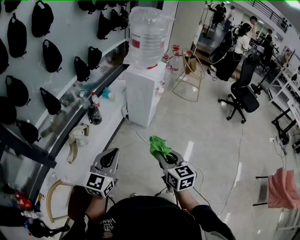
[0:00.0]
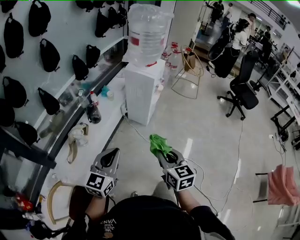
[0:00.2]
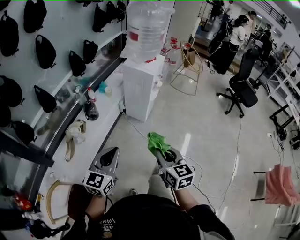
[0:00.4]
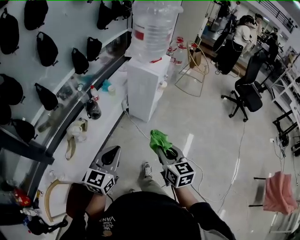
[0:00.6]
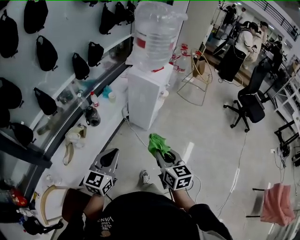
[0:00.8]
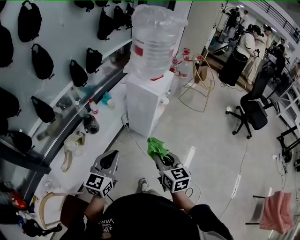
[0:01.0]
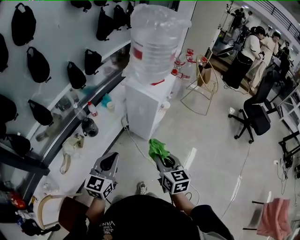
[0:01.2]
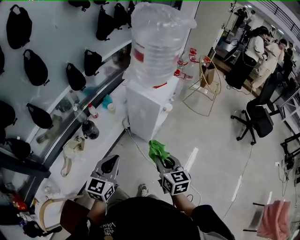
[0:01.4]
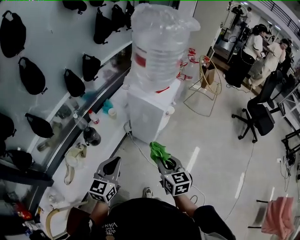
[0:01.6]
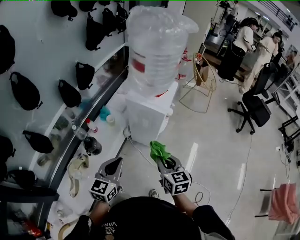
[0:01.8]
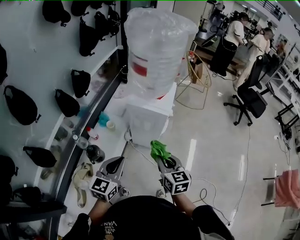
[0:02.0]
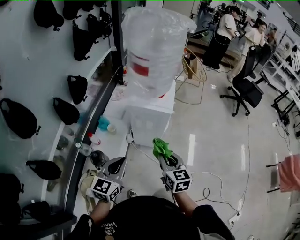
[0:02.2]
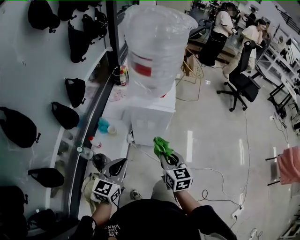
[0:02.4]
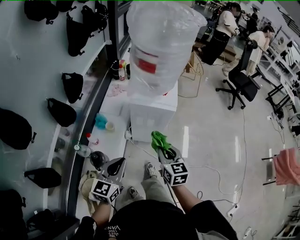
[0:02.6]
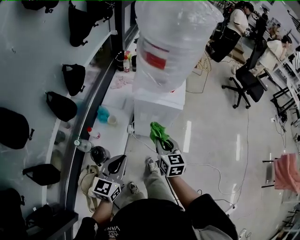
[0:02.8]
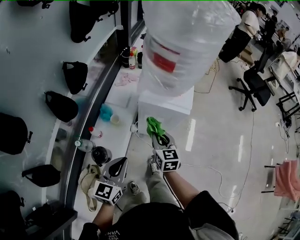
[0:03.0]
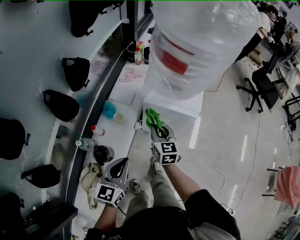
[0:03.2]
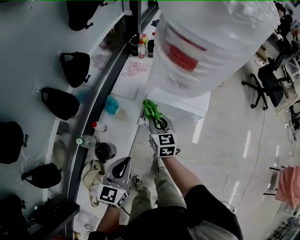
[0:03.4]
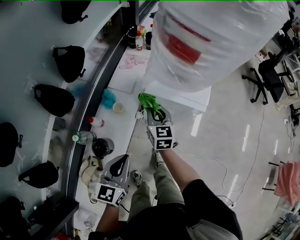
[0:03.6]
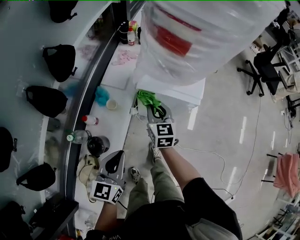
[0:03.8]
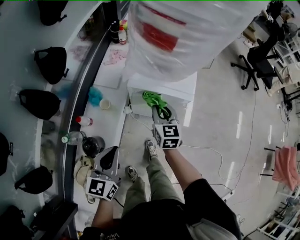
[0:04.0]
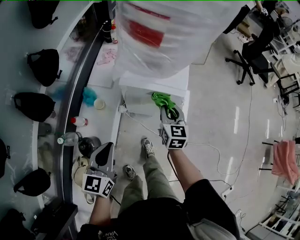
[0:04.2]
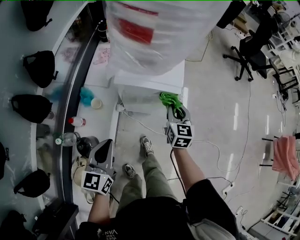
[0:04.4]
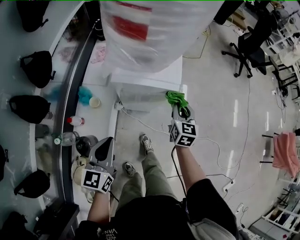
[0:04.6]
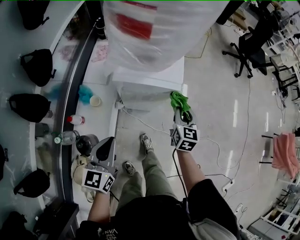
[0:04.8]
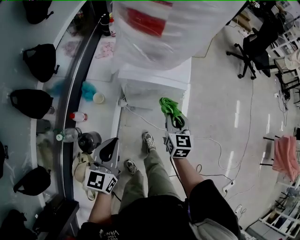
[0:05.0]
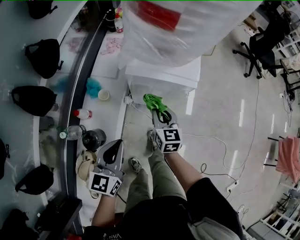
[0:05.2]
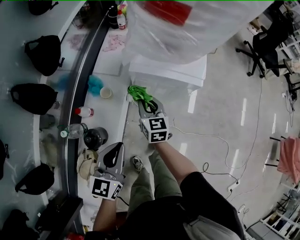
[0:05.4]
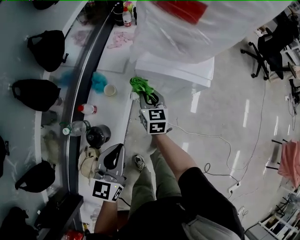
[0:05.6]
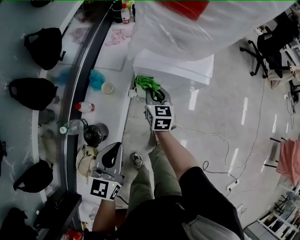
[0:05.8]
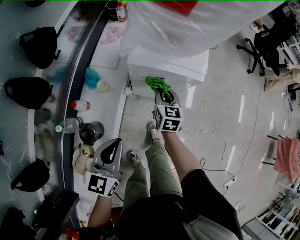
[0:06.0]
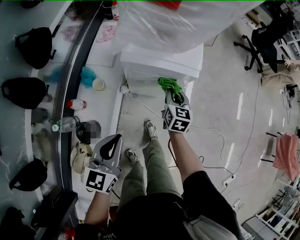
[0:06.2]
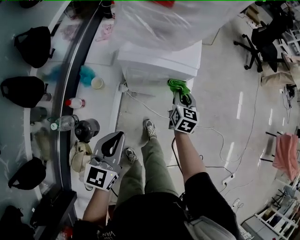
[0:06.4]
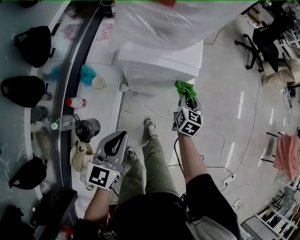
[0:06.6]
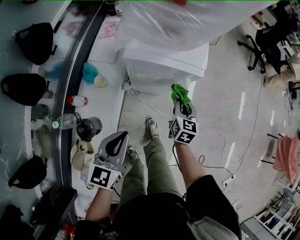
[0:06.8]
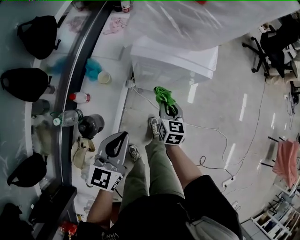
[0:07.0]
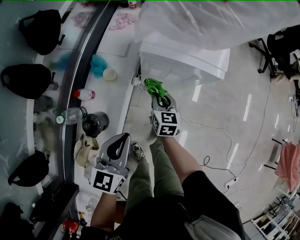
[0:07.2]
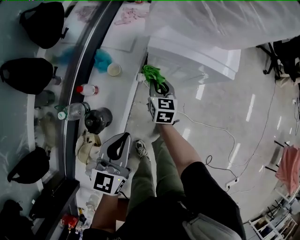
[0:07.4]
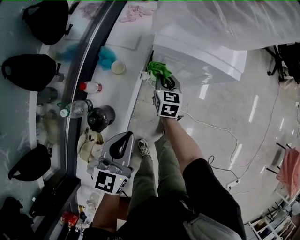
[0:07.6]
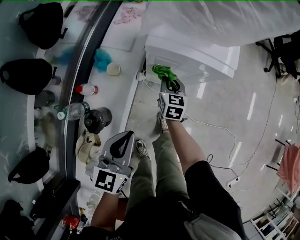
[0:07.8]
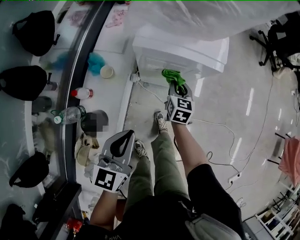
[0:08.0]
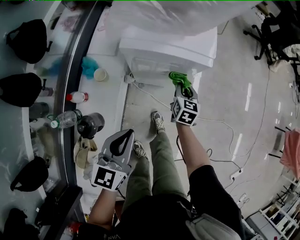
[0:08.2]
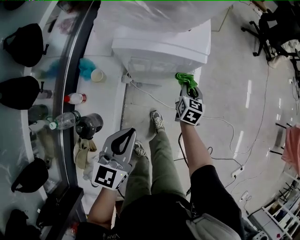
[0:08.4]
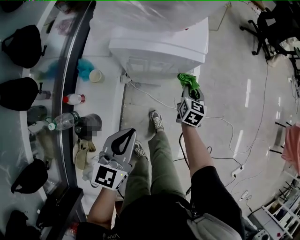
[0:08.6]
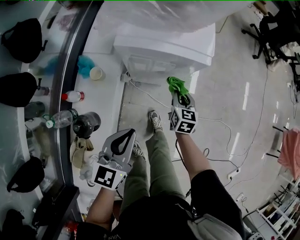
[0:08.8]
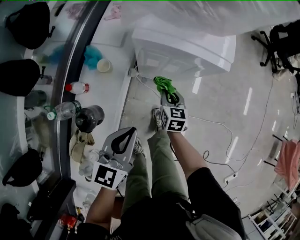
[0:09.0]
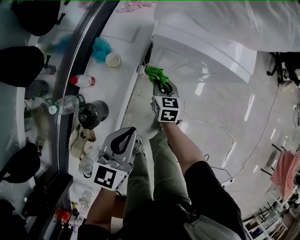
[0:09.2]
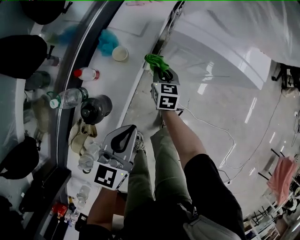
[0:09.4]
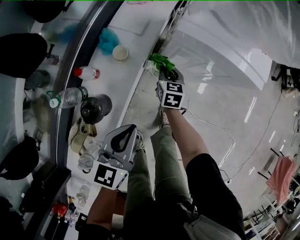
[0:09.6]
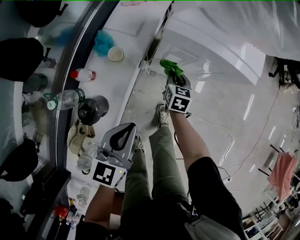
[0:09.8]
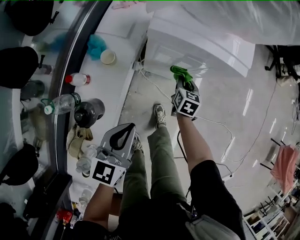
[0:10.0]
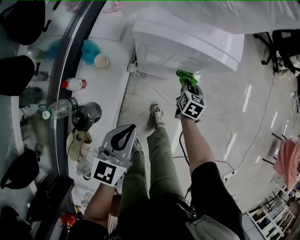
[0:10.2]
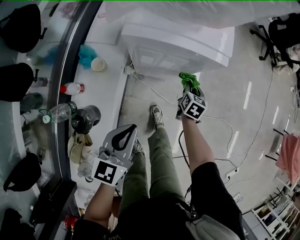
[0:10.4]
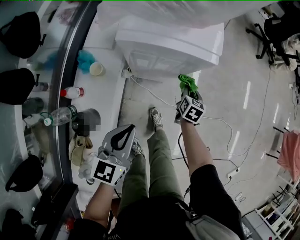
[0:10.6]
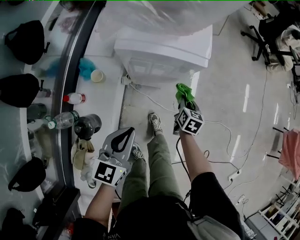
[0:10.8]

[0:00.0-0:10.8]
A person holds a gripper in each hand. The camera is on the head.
0:00.0 to 0:01.6: The grippers both shift forward by some 30 cm.
0:01.6 to 0:03.0: The left gripper goes approximately 20 cm to the left and forward. Meanwhile the right gripper is displaced forward, to the left and downward by about 30 cm, and changes its angle by about 20 degrees.
0:03.0 to 0:04.6: The right gripper is displaced to the right by about 20 cm, and turns by some 20 degrees. The left gripper moves forward, roughly 5 cm.
0:04.6 to 0:06.2: The right gripper heads downward, covering about 10 cm, and goes to the left and returns, some 25 cm each way.
0:06.2 to 0:07.8: The right gripper swings left and right, some 25 cm each way, with 2 reversals.
0:07.8 to 0:09.2: The right gripper heads downward, covering some 5 cm, and travels to the right and back again, roughly 20 cm each way.
0:09.2 to 0:10.8: The left gripper heads to the right, covering approximately 5 cm, while the right gripper moves to the right, some 25 cm, and rotates about 30 degrees.

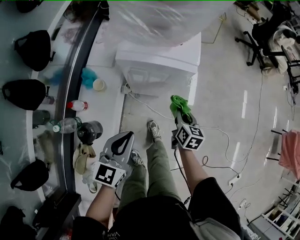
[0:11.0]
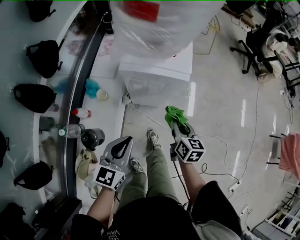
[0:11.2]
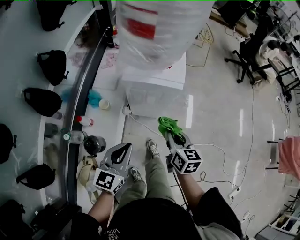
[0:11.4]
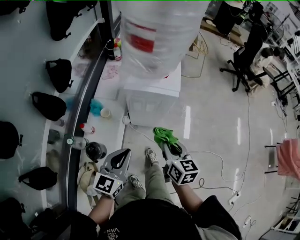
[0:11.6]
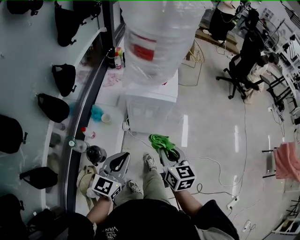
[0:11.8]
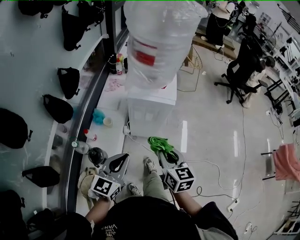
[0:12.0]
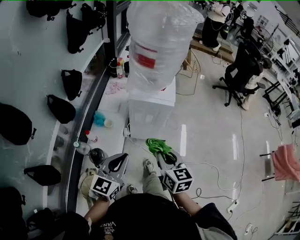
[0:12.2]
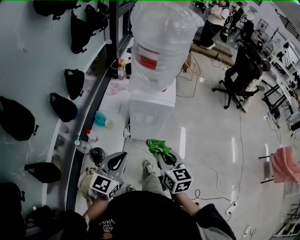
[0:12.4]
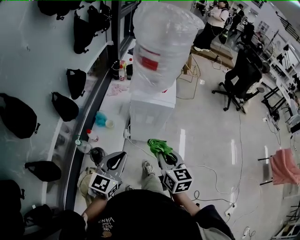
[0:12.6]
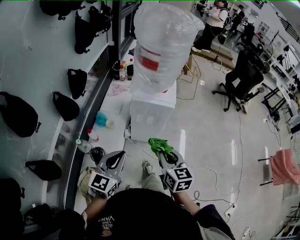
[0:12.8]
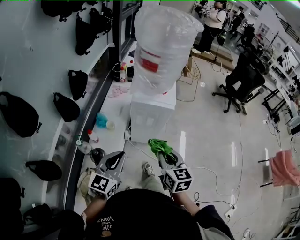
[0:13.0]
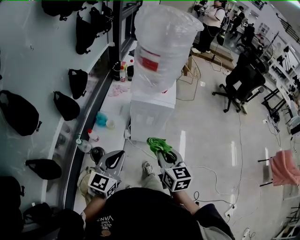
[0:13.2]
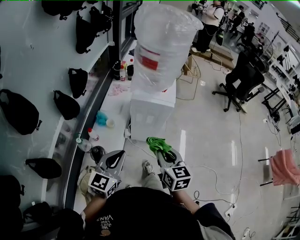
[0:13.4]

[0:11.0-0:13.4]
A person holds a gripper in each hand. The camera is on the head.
0:11.0 to 0:12.2: The right gripper moves upward and backward, some 30 cm, and rotates some 20 degrees, while the left gripper shifts roughly 20 cm upward and backward.
0:12.2 to 0:13.4: The grippers stay close to where they were, moving slightly.

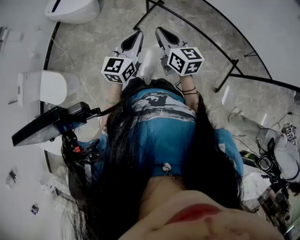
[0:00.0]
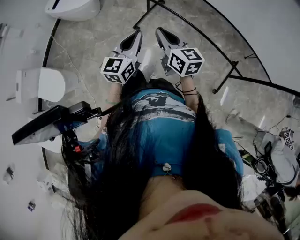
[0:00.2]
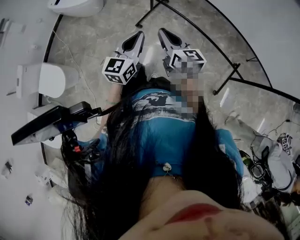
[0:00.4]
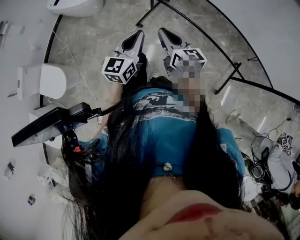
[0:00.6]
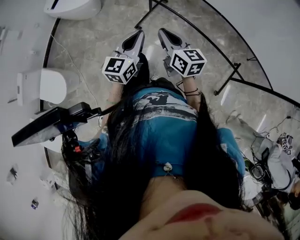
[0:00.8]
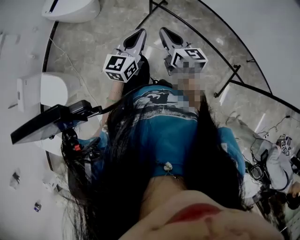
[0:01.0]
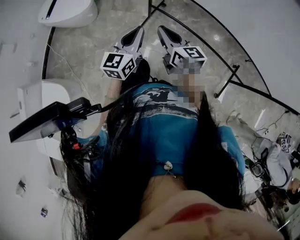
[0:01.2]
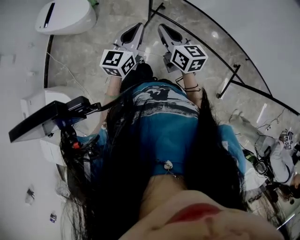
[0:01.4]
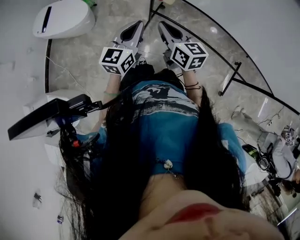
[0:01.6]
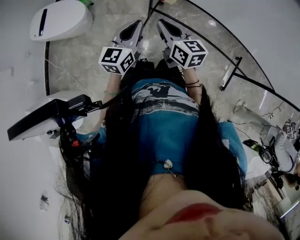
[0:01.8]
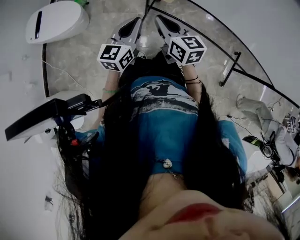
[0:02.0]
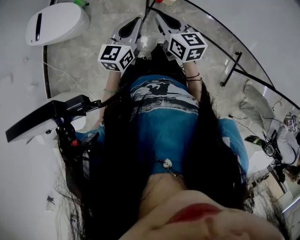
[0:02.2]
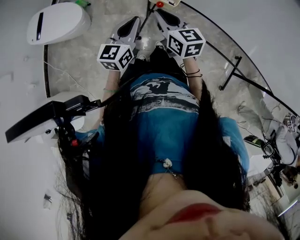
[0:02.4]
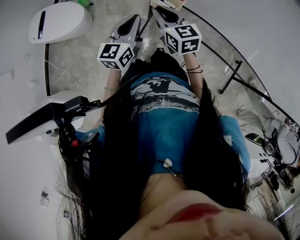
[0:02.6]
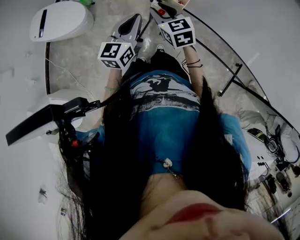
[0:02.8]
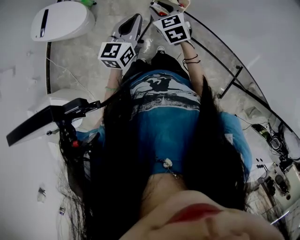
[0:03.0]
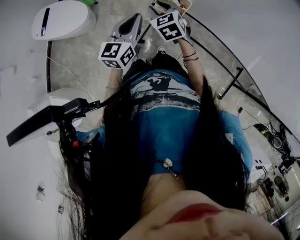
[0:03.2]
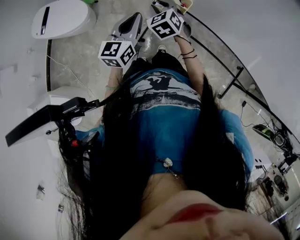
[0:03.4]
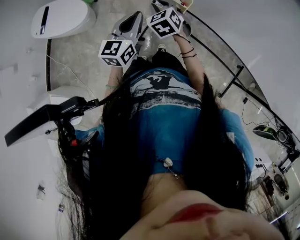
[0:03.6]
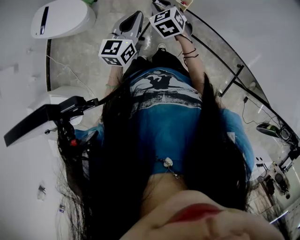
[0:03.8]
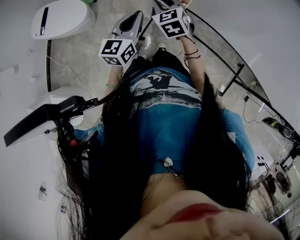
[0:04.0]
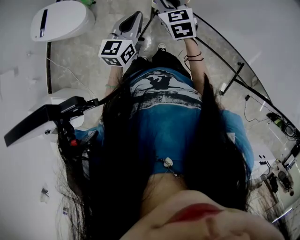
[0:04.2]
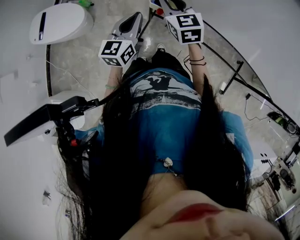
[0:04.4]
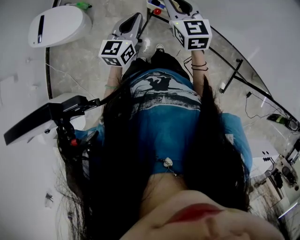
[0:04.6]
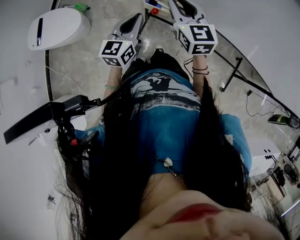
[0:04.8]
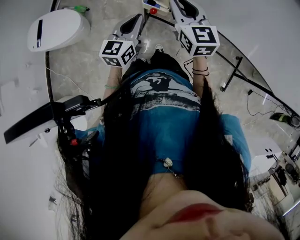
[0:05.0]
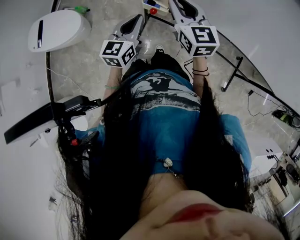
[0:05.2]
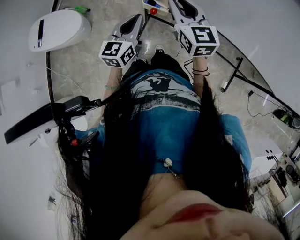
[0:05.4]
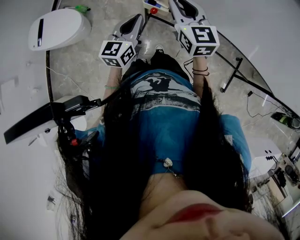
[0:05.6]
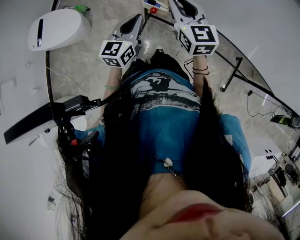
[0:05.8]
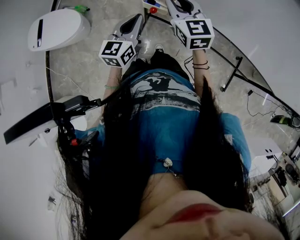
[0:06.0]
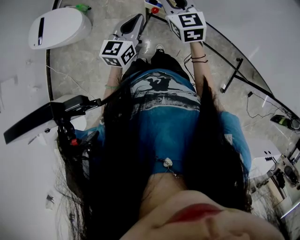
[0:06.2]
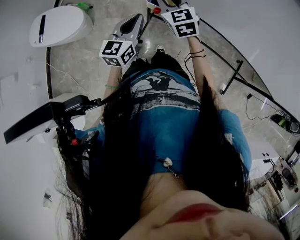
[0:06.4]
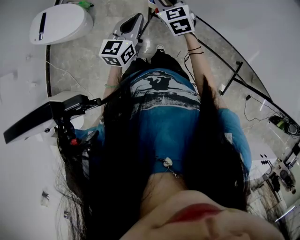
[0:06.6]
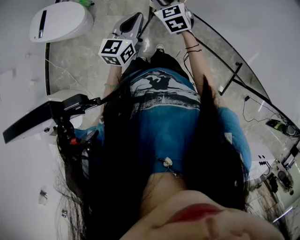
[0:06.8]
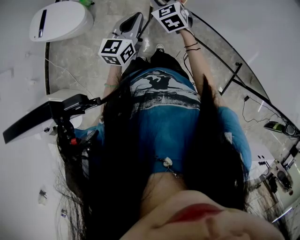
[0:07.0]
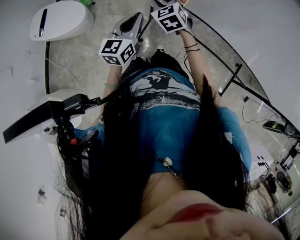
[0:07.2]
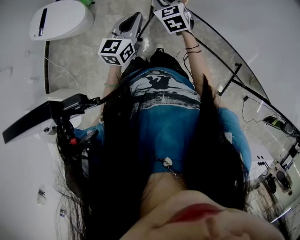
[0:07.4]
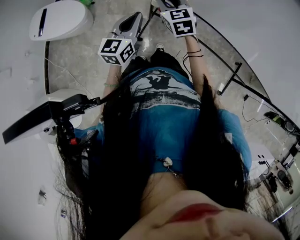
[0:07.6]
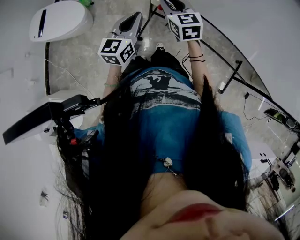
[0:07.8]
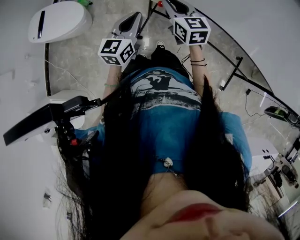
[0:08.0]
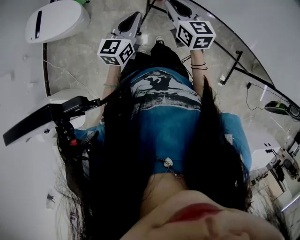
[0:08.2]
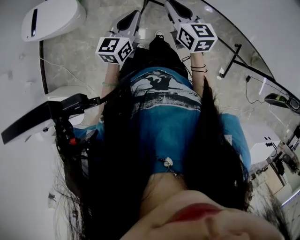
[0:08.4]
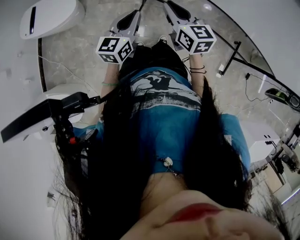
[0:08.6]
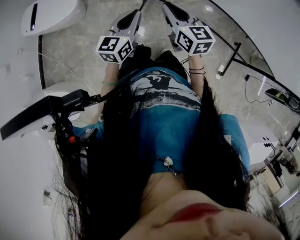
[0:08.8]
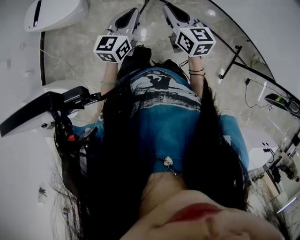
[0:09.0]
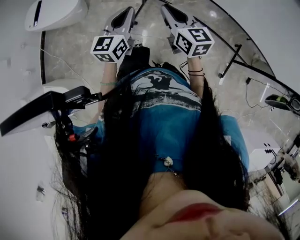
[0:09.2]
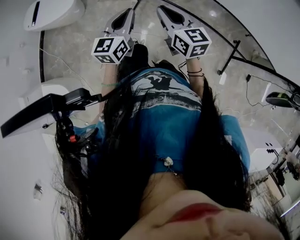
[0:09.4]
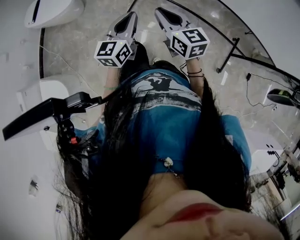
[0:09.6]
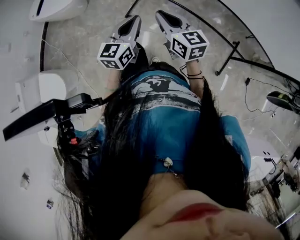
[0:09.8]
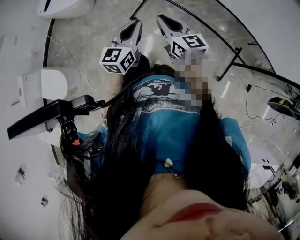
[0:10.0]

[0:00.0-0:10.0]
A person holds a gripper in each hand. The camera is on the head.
0:00.0 to 0:01.4: Both grippers move forward, some 30 cm.
0:01.4 to 0:02.8: The left gripper is displaced forward by some 10 cm, while the right gripper shifts roughly 15 cm forward and to the left, rotates roughly 30 degrees, and opens.
0:04.2 to 0:05.8: The right gripper travels upward and to the right by approximately 10 cm.
0:05.8 to 0:07.2: The right gripper moves downward, to the left and forward, roughly 15 cm, and changes its angle by approximately 30 degrees.
0:07.2 to 0:08.6: The right gripper is displaced backward and to the right by roughly 15 cm, and turns by about 40 degrees. The left gripper ends up approximately 5 cm from where it was.
0:08.6 to 0:10.0: The two grippers go approximately 30 cm backward.
